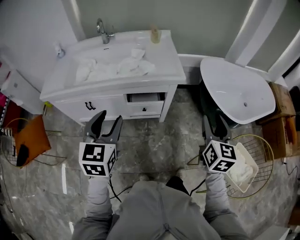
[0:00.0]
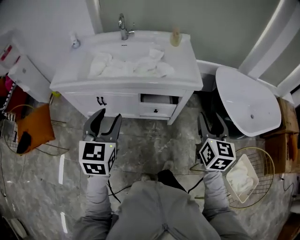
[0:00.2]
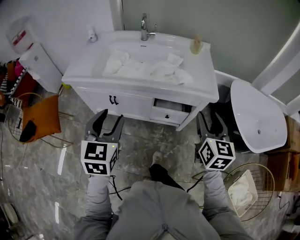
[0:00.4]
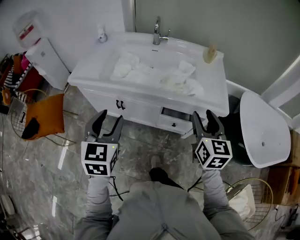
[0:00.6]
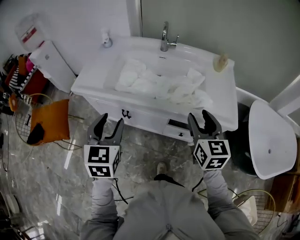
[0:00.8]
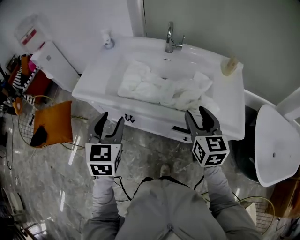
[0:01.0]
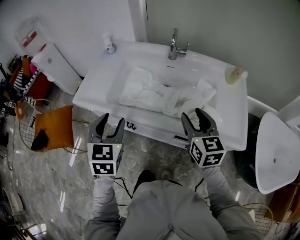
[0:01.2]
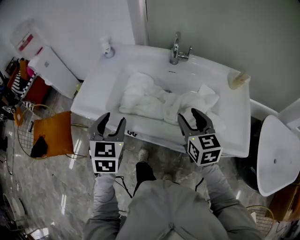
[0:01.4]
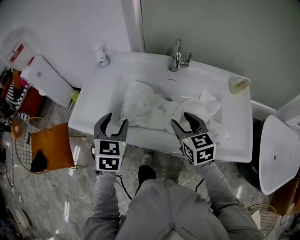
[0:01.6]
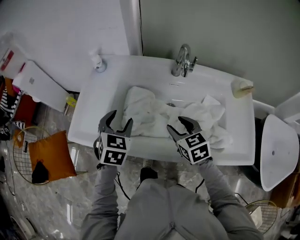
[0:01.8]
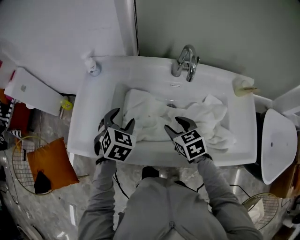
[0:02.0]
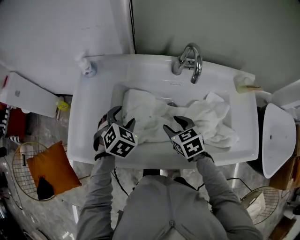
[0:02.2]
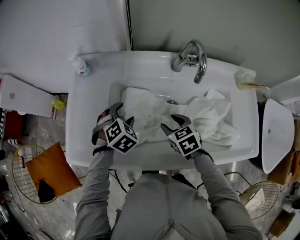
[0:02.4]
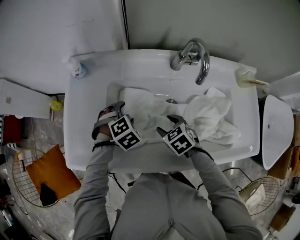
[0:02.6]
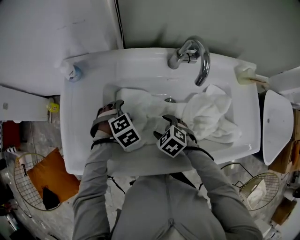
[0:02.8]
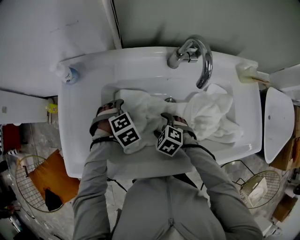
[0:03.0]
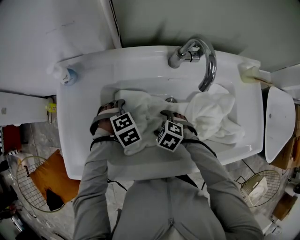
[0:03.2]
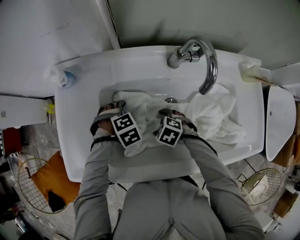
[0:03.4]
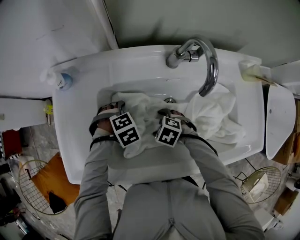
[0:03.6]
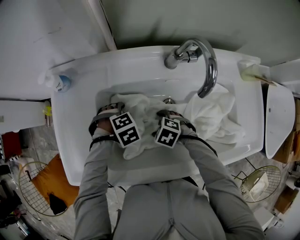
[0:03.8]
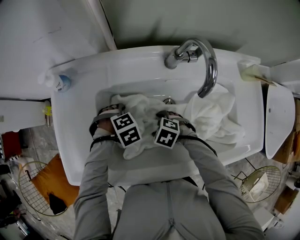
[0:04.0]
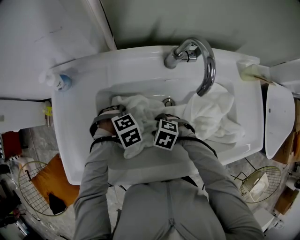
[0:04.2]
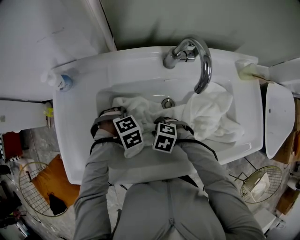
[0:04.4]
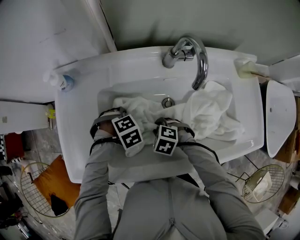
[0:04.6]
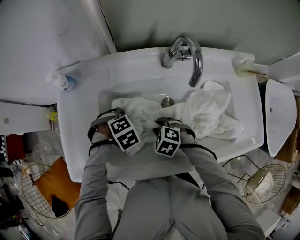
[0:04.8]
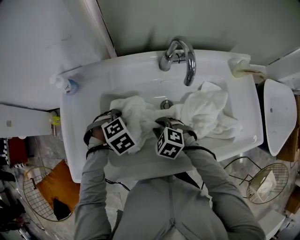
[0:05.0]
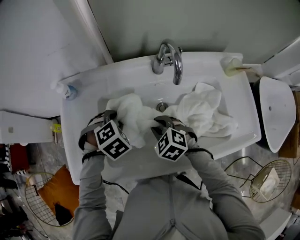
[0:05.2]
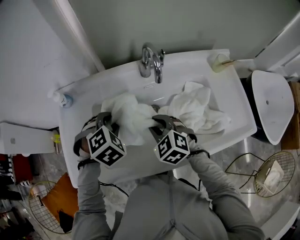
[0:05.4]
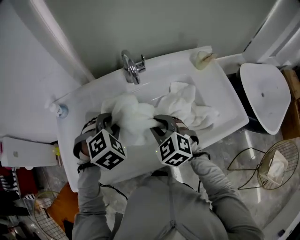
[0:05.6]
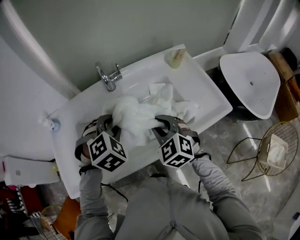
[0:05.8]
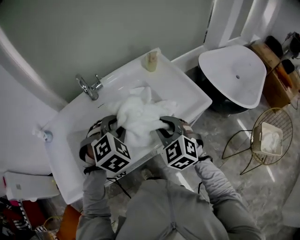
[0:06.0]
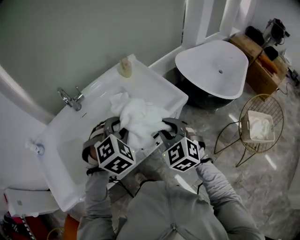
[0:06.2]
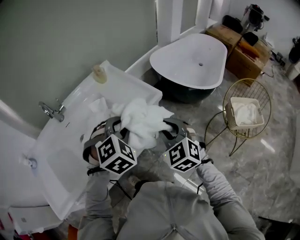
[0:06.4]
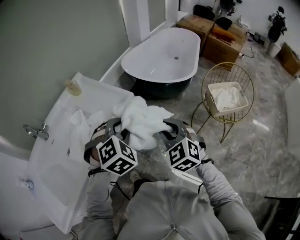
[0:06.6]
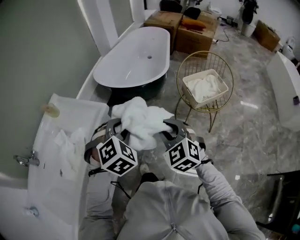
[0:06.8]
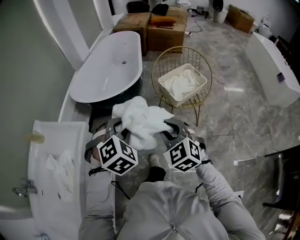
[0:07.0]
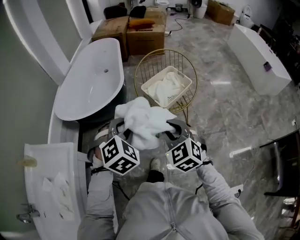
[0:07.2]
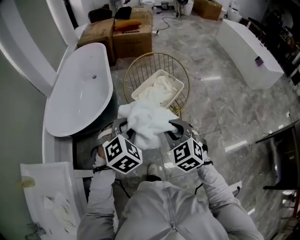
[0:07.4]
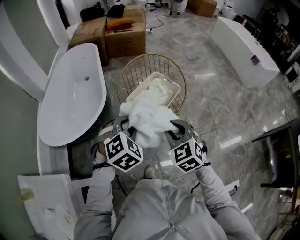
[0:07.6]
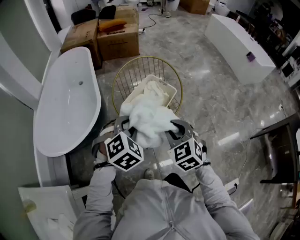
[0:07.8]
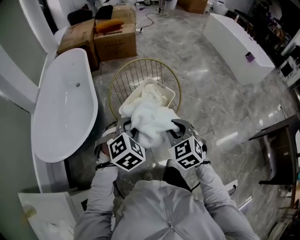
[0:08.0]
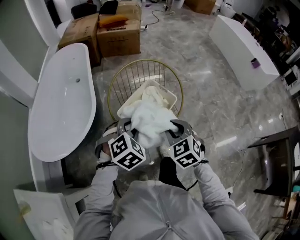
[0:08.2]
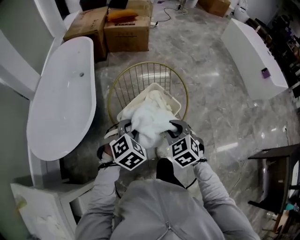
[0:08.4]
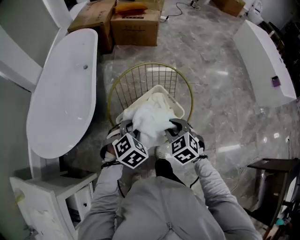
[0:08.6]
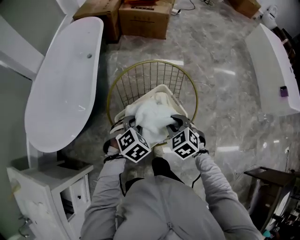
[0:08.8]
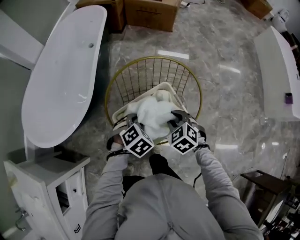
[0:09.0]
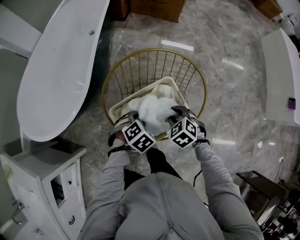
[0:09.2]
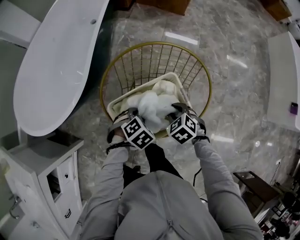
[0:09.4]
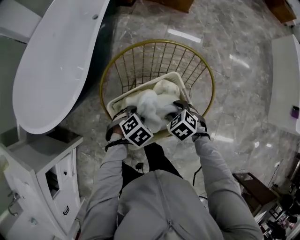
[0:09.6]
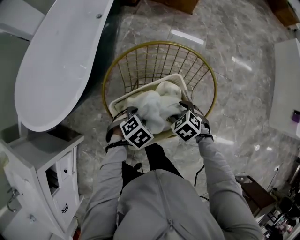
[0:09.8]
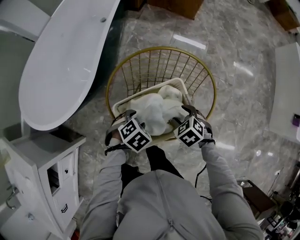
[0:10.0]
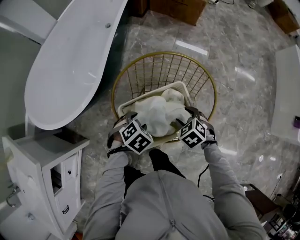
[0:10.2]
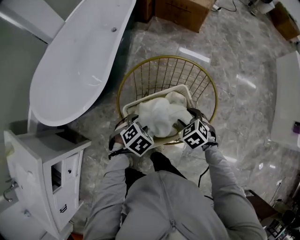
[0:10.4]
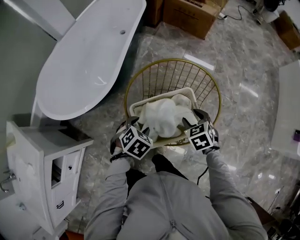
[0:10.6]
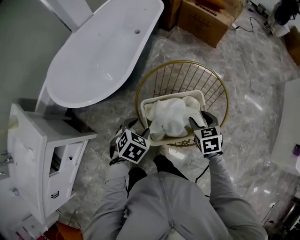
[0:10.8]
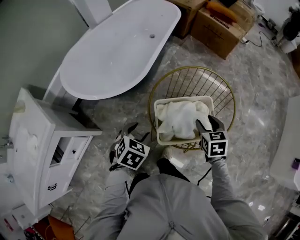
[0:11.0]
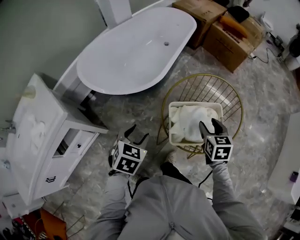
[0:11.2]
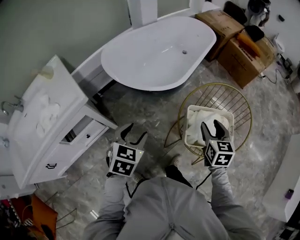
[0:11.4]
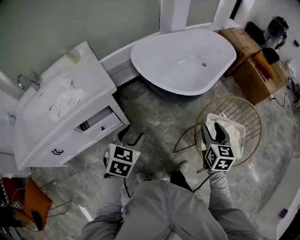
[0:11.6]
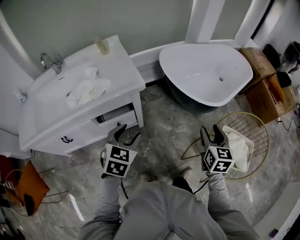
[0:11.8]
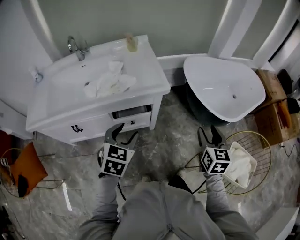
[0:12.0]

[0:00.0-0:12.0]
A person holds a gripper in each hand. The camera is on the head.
0.0 to 1.6 s: Both grippers are carried approximately 50 cm. The left gripper turns by approximately 20 degrees. Meanwhile the right gripper swivels roughly 50 degrees.
1.6 to 3.0 s: Both grippers travel together downward, roughly 25 cm. The left gripper tips its fingers downward by roughly 40 degrees. The right gripper tilts its fingers roughly 40 degrees downward.
3.0 to 4.4 s: The right gripper closes its fingers. Meanwhile the left gripper closes its fingers.
4.4 to 6.0 s: The left gripper shifts by approximately 40 cm, and points its fingers approximately 40 degrees further upward; the right gripper ends up approximately 40 cm from where it was, and angles its fingers upward, by approximately 40 degrees.
6.0 to 7.6 s: Both grippers are carried roughly 80 cm. The right gripper swivels about 80 degrees. The left gripper swivels about 70 degrees.
7.6 to 9.0 s: Both grippers travel together forward and downward, roughly 35 cm. The right gripper changes its angle by approximately 30 degrees; the left gripper rotates approximately 30 degrees.
9.0 to 10.4 s: The left gripper moves roughly 10 cm downward and comes back. The right gripper goes downward and returns, about 10 cm each way, and opens.
10.4 to 12.0 s: The pair of grippers is taken some 60 cm. The left gripper tips its fingers upward by some 40 degrees; the right gripper tips its fingers upward by roughly 40 degrees.

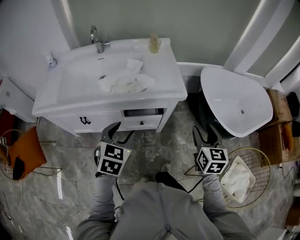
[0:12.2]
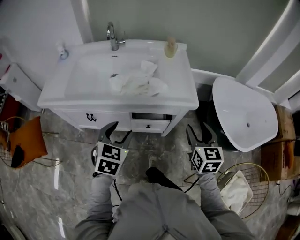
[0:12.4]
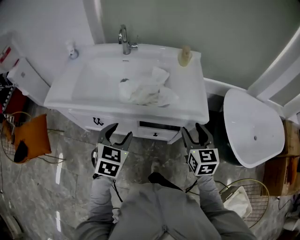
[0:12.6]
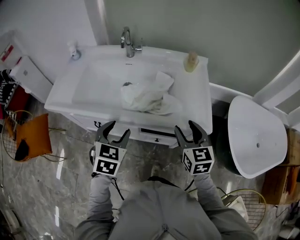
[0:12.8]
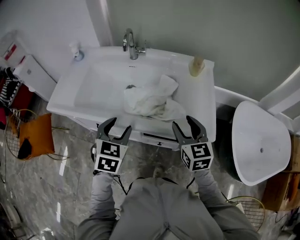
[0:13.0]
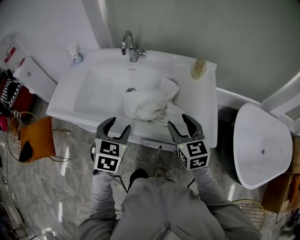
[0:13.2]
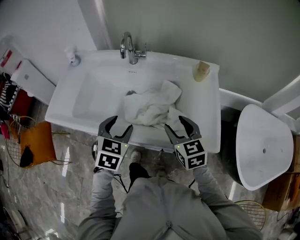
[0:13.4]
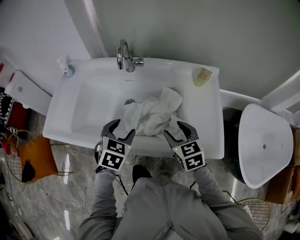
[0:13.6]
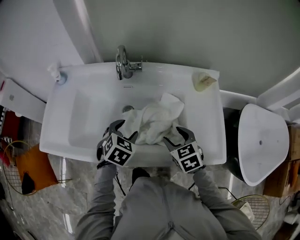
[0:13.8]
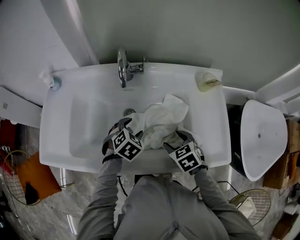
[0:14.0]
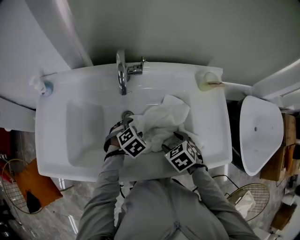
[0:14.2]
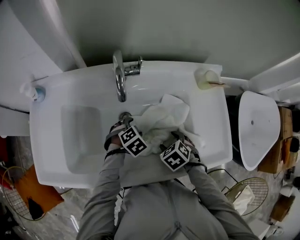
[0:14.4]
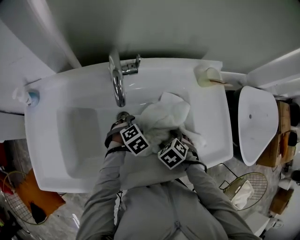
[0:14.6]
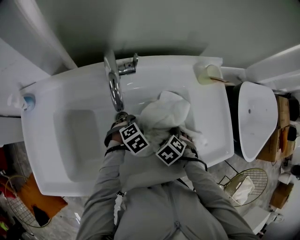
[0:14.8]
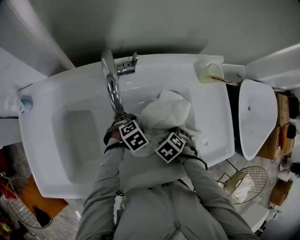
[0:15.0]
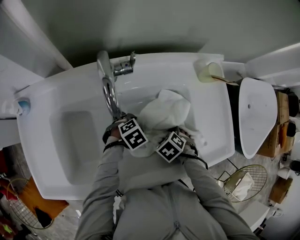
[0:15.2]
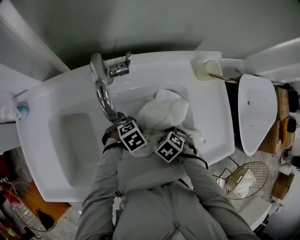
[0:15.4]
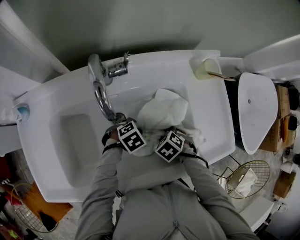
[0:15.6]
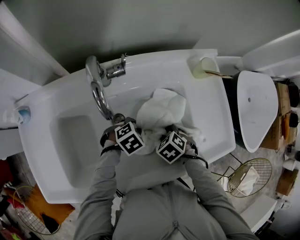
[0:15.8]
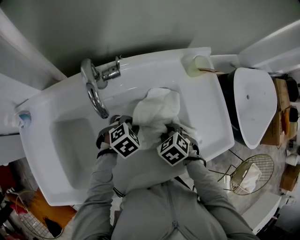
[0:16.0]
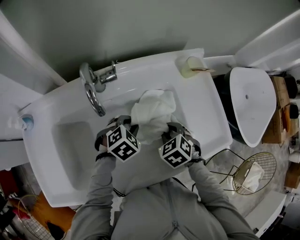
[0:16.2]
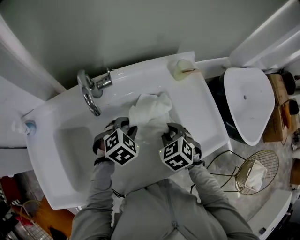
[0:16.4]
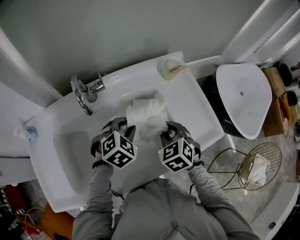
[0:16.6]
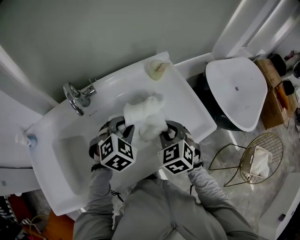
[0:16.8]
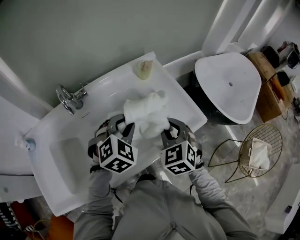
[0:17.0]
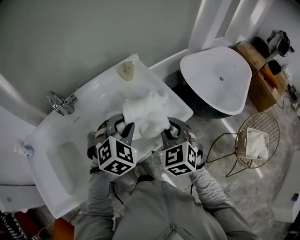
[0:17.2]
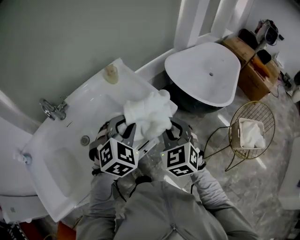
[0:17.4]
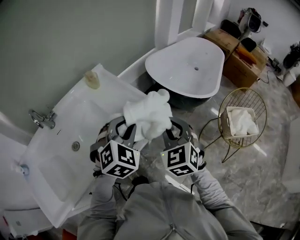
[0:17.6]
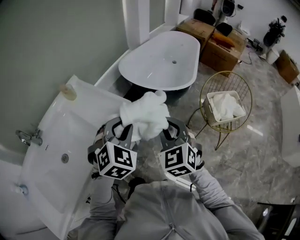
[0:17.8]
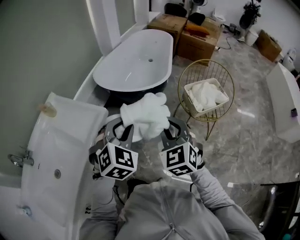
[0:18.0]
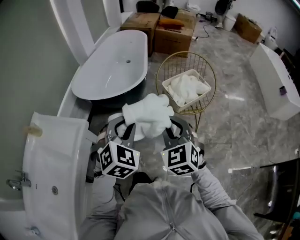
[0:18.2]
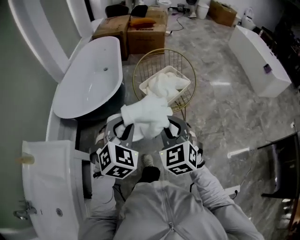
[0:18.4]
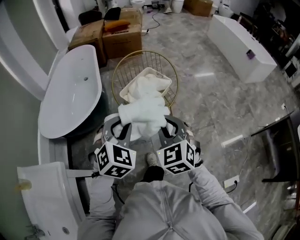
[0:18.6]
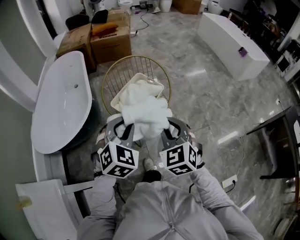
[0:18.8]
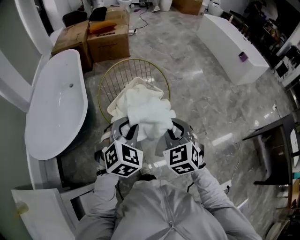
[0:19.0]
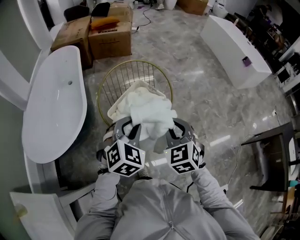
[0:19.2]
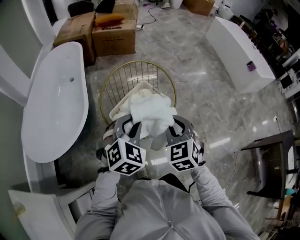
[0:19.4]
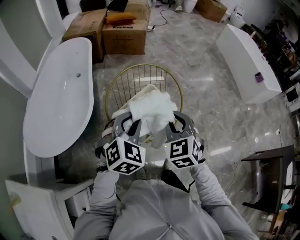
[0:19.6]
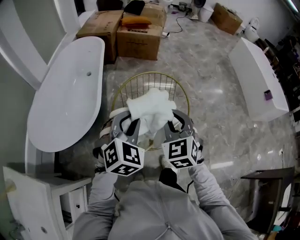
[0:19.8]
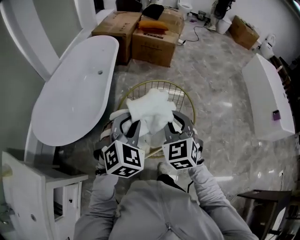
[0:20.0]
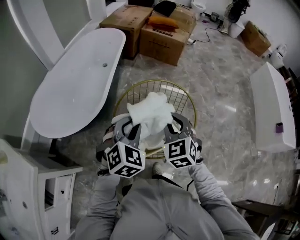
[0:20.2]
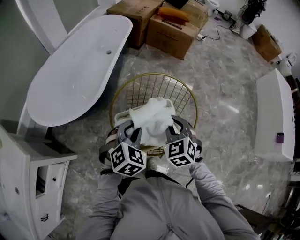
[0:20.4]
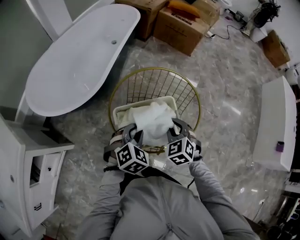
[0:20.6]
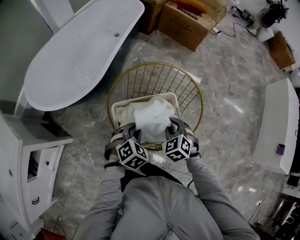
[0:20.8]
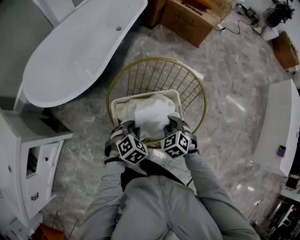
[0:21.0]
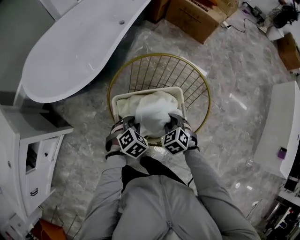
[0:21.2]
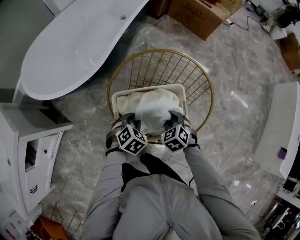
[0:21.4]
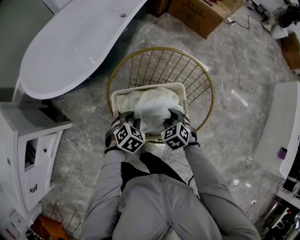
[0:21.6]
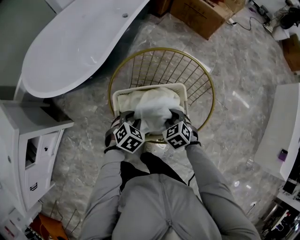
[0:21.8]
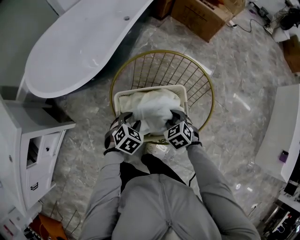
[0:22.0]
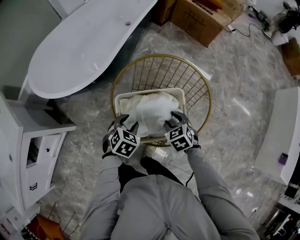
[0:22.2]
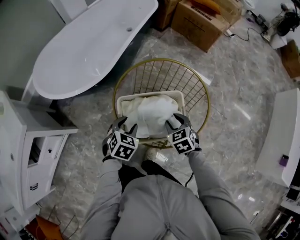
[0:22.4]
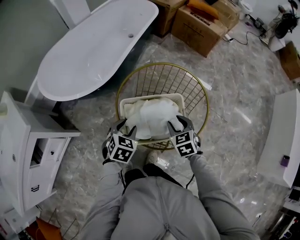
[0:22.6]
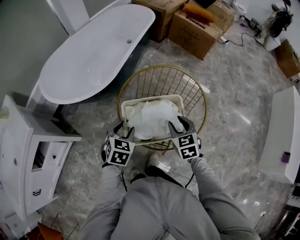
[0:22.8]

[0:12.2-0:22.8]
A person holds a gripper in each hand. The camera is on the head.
12.2 to 13.8 s: The right gripper moves approximately 50 cm, and swivels approximately 40 degrees. The left gripper ends up about 40 cm from where it was.
13.8 to 15.2 s: The two grippers go some 15 cm downward. The right gripper points its fingers approximately 40 degrees further downward. Meanwhile the left gripper turns by about 40 degrees.
15.2 to 16.8 s: The two grippers go some 25 cm upward. The right gripper tilts its fingers about 50 degrees upward, and closes, while the left gripper rotates about 40 degrees, and closes up.
16.8 to 18.2 s: The pair of grippers is taken some 60 cm. The left gripper swivels roughly 50 degrees, while the right gripper changes its angle by roughly 60 degrees.
18.2 to 19.8 s: Both grippers are carried roughly 40 cm.
19.8 to 21.2 s: Both grippers travel together downward, approximately 30 cm. The left gripper angles its fingers downward, by roughly 30 degrees. Meanwhile the right gripper points its fingers approximately 30 degrees further downward.
21.2 to 22.8 s: The right gripper travels upward by approximately 10 cm, and changes its angle by about 30 degrees. Meanwhile the left gripper travels upward and to the left by some 15 cm, and rotates about 30 degrees.

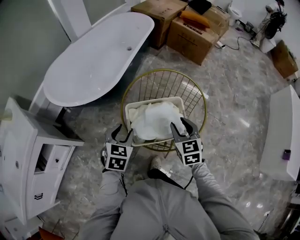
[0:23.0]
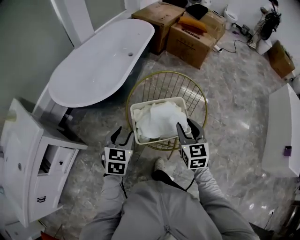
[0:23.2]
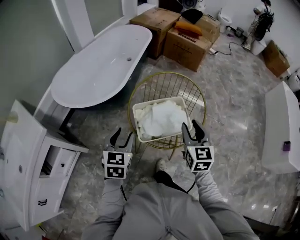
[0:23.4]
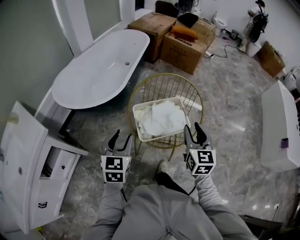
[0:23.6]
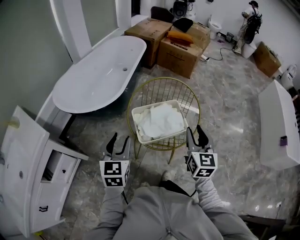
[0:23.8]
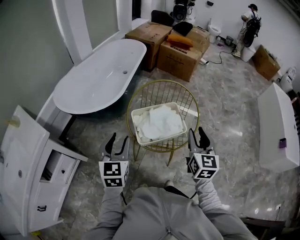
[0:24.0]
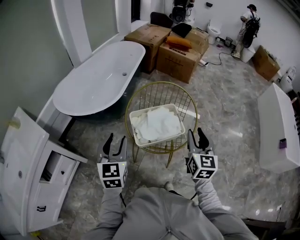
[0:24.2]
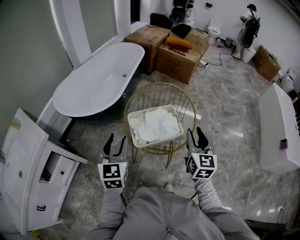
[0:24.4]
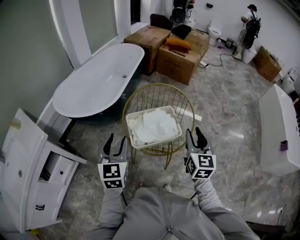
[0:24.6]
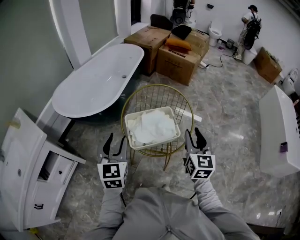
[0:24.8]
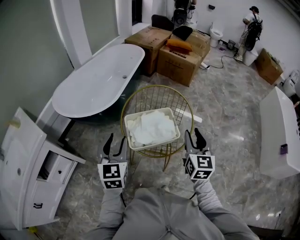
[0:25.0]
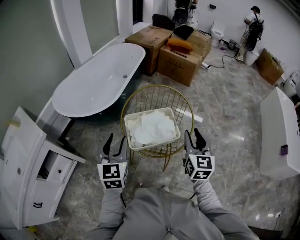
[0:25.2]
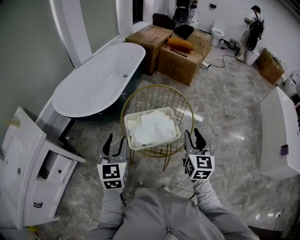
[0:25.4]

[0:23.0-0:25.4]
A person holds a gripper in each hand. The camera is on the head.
23.0 to 24.2 s: The two grippers go about 20 cm upward and backward. The right gripper rotates some 30 degrees, while the left gripper turns by roughly 30 degrees.
24.2 to 25.4 s: The left gripper changes place by approximately 5 cm.
